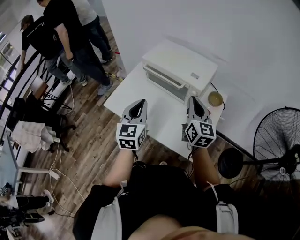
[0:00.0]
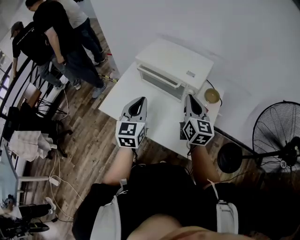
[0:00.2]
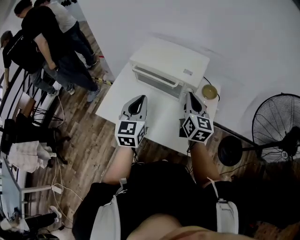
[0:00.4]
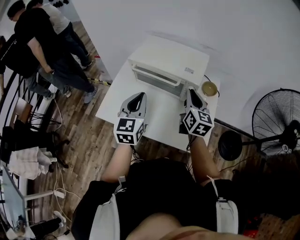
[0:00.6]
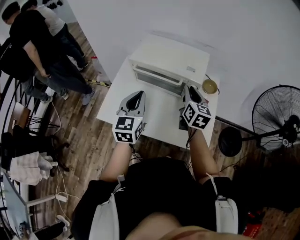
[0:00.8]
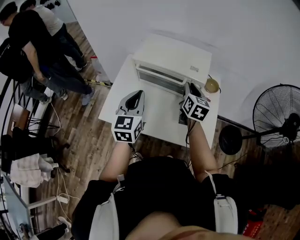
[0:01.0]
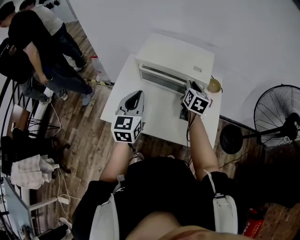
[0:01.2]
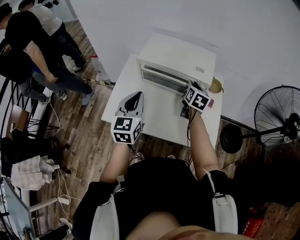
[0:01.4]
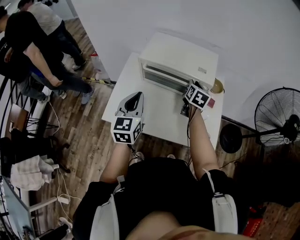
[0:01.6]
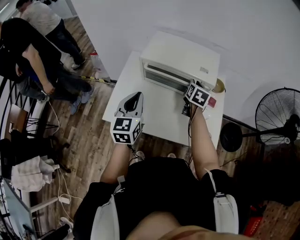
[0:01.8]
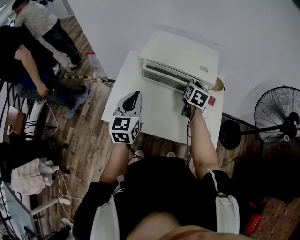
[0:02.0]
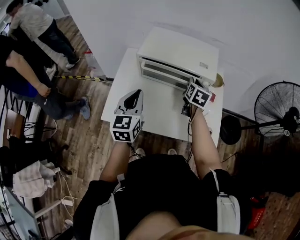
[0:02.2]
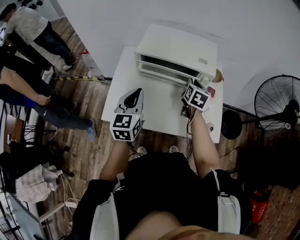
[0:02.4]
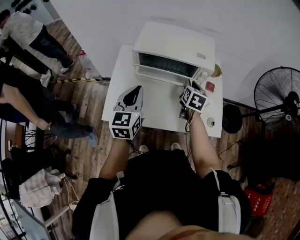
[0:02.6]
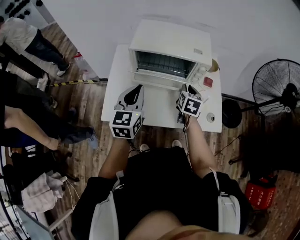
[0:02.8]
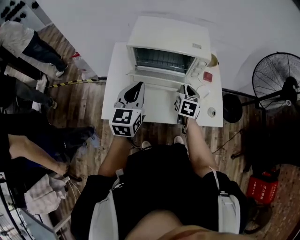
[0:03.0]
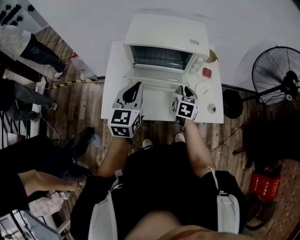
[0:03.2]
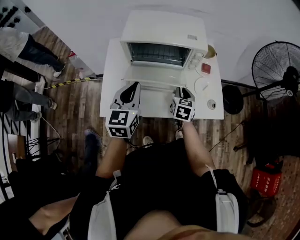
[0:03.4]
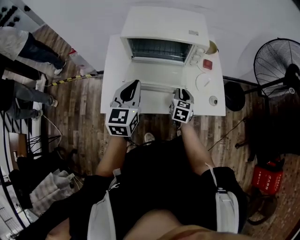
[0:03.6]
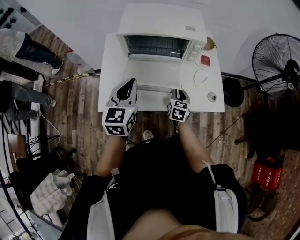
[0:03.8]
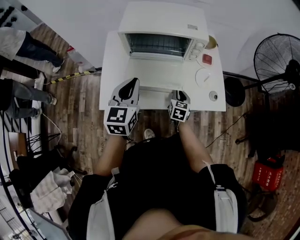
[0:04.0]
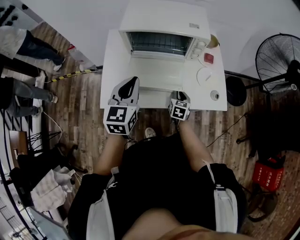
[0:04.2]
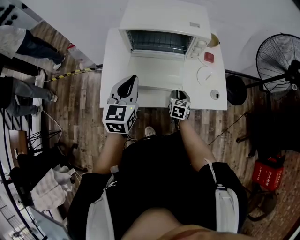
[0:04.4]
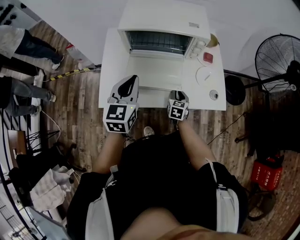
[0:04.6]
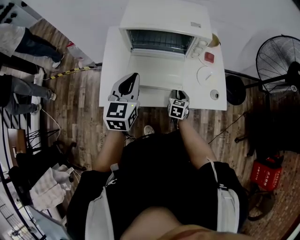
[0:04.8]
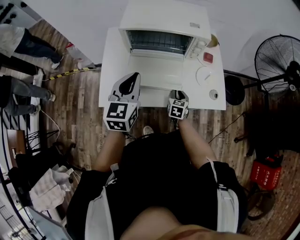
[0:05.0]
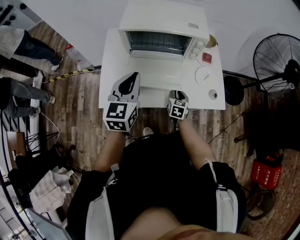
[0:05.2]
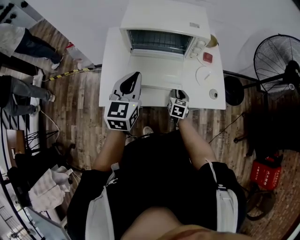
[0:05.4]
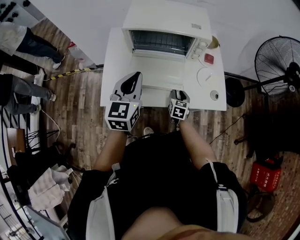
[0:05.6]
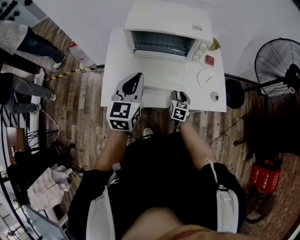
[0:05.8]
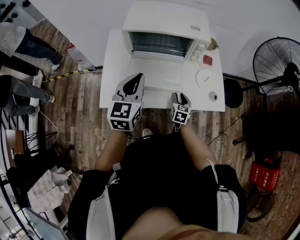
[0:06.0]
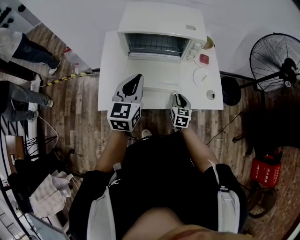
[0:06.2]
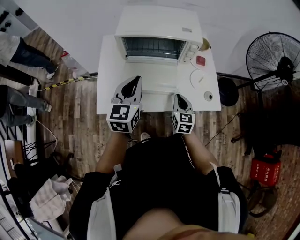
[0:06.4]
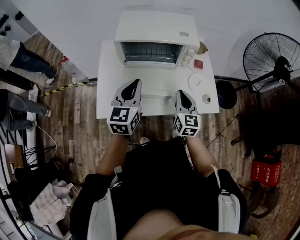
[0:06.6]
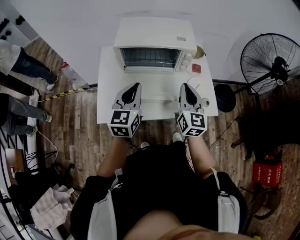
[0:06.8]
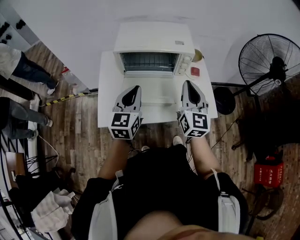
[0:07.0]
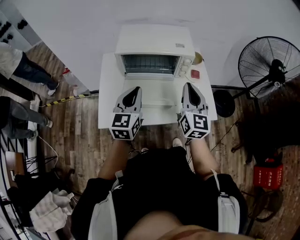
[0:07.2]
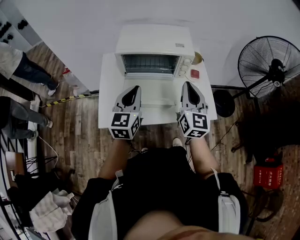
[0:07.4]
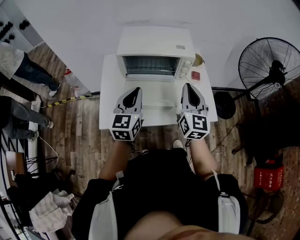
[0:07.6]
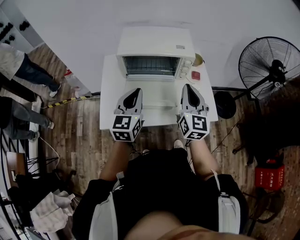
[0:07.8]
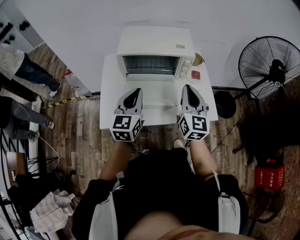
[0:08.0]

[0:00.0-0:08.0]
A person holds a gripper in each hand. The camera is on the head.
0:00.0 to 0:01.6: The left gripper travels to the left and forward by roughly 15 cm. Meanwhile the right gripper moves forward and downward, approximately 20 cm, turns by approximately 40 degrees, and opens its fingers.
0:01.6 to 0:03.2: The right gripper shifts roughly 15 cm backward and downward.
0:03.2 to 0:04.8: The right gripper shifts roughly 15 cm downward.
0:04.8 to 0:06.4: The right gripper goes about 10 cm upward.
0:06.4 to 0:08.0: The right gripper travels upward by some 25 cm, and turns by roughly 20 degrees.

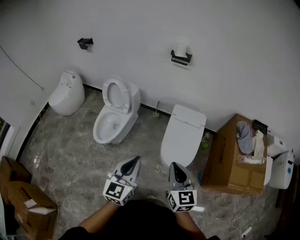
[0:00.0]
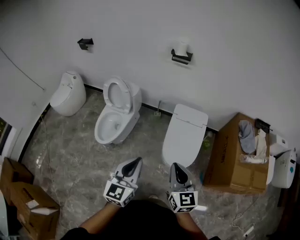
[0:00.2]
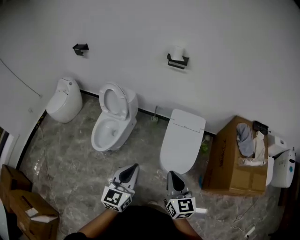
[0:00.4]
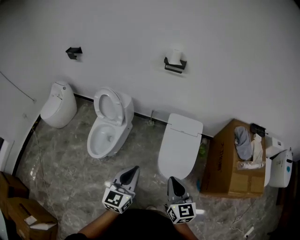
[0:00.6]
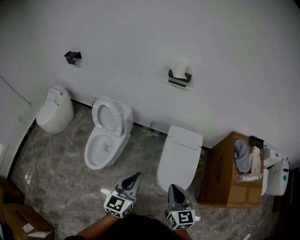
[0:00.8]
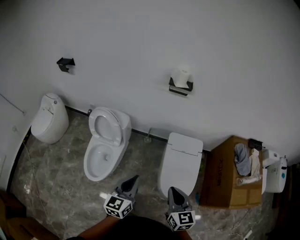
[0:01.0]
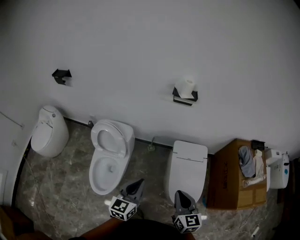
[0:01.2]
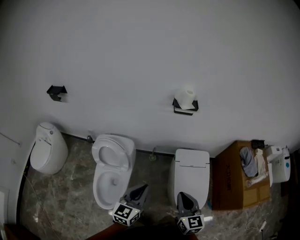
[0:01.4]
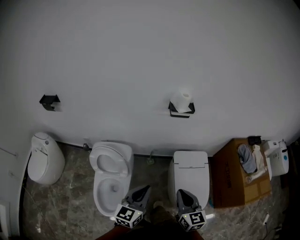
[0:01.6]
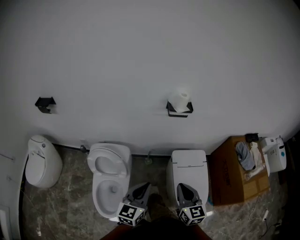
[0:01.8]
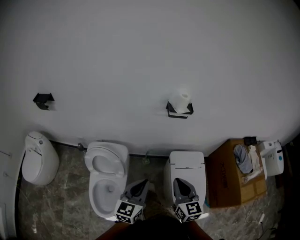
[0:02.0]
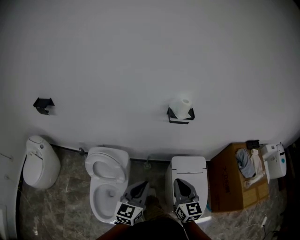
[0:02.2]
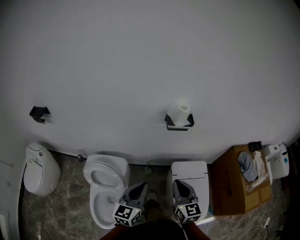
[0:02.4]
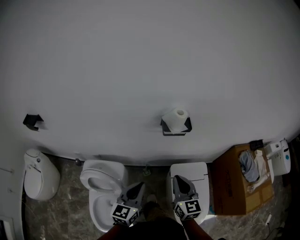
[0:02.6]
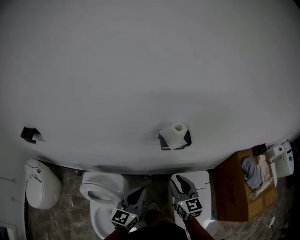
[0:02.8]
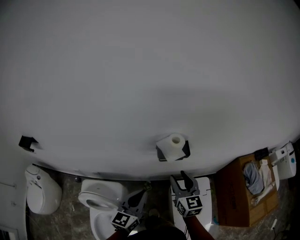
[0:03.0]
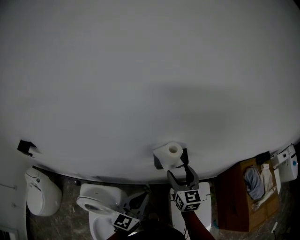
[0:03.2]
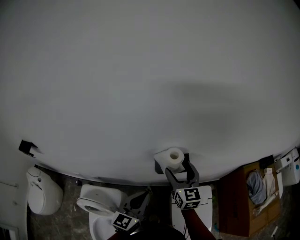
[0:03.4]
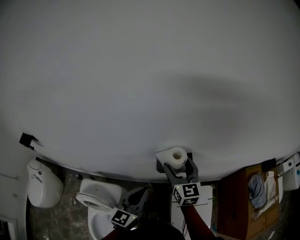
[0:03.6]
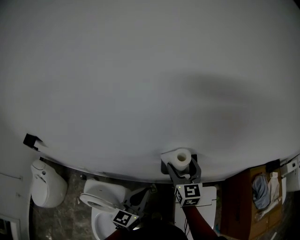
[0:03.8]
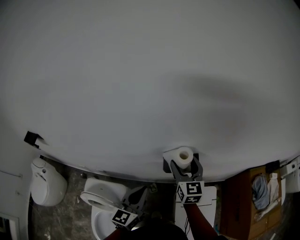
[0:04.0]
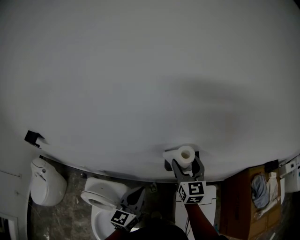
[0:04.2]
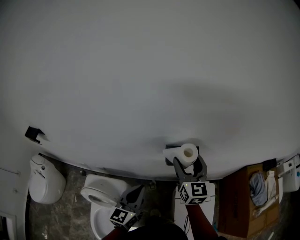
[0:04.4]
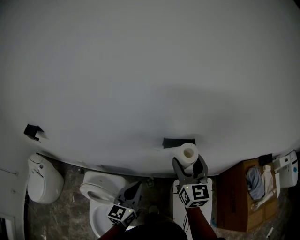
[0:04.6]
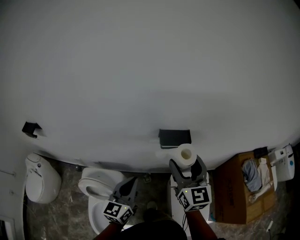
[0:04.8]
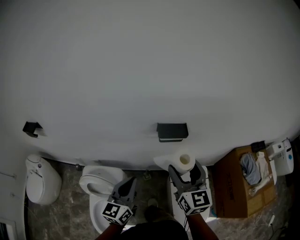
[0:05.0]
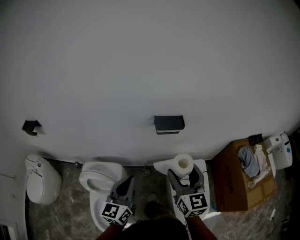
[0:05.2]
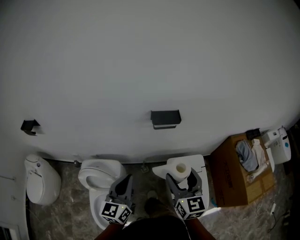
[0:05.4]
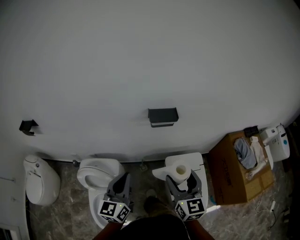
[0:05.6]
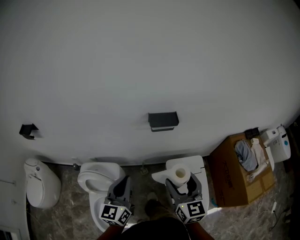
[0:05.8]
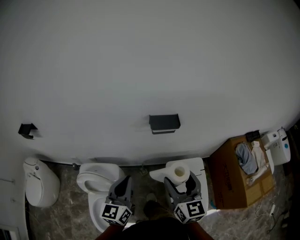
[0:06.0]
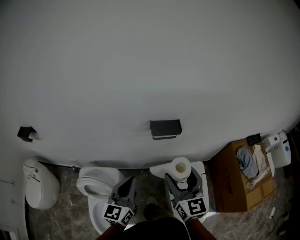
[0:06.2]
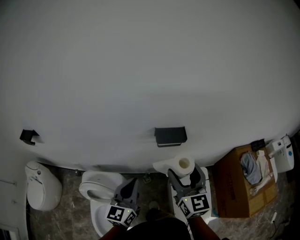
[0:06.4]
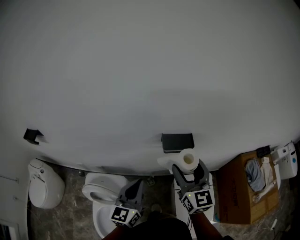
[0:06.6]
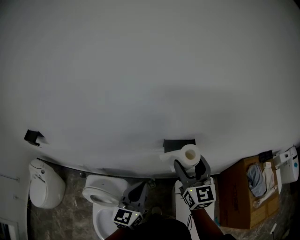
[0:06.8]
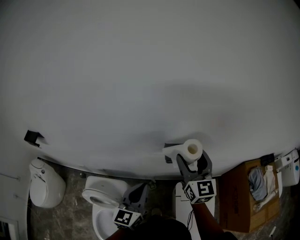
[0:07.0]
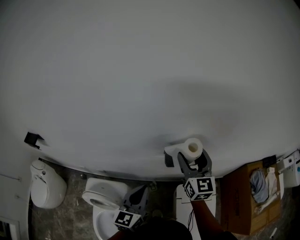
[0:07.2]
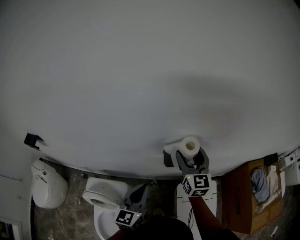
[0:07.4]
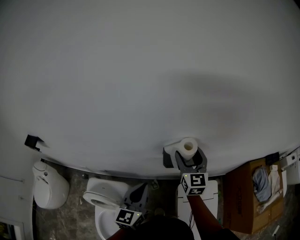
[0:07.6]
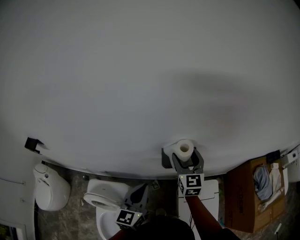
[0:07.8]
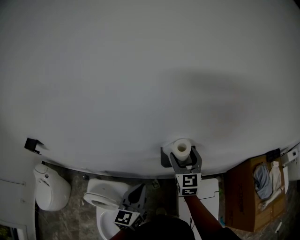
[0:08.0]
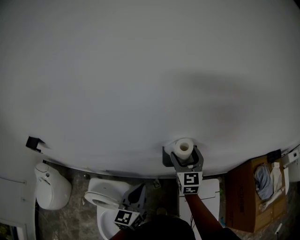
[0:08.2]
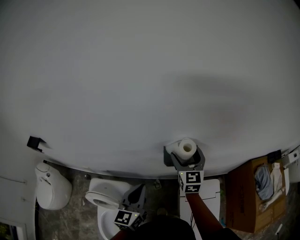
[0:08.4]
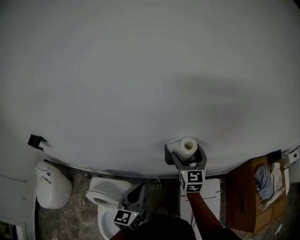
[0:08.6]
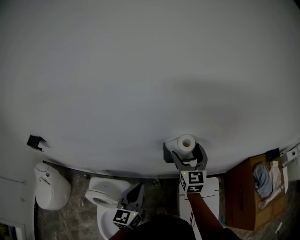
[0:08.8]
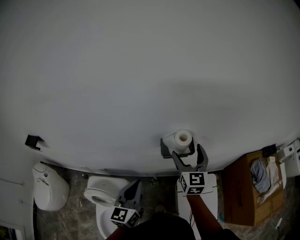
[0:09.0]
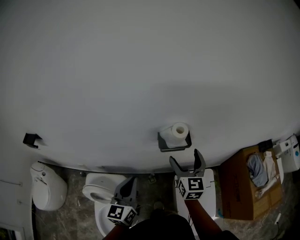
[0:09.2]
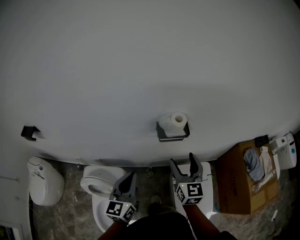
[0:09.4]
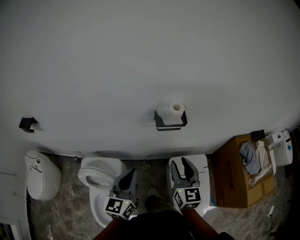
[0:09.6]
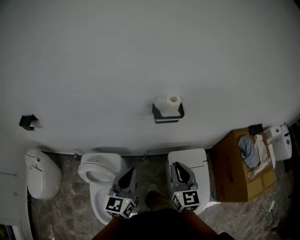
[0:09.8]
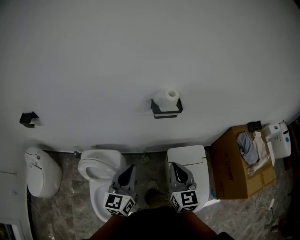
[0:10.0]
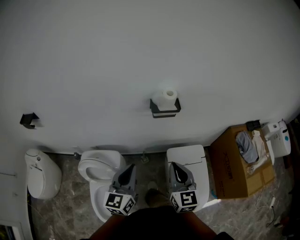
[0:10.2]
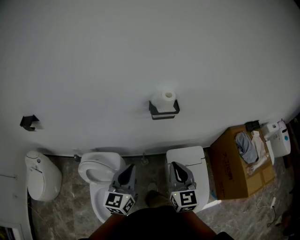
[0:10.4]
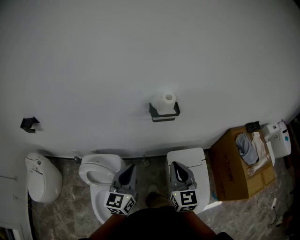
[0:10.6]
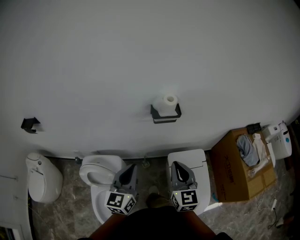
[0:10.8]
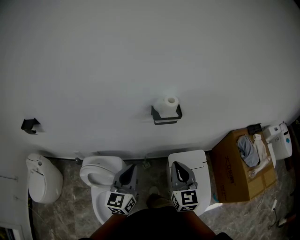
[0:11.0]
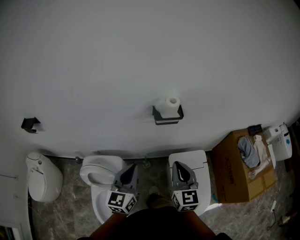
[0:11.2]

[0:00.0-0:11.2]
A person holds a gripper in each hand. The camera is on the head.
0:00.0 to 0:01.6: Both grippers are carried forward and to the left, some 40 cm. The left gripper changes its angle by about 30 degrees.
0:01.6 to 0:03.2: The grippers both shift forward by about 40 cm. The right gripper opens.
0:03.2 to 0:04.8: The left gripper goes about 10 cm backward and to the left, while the right gripper heads upward and backward, covering about 15 cm.
0:04.8 to 0:06.4: The right gripper moves some 20 cm backward and comes back; the left gripper travels backward and back again, about 10 cm each way.
0:06.4 to 0:08.0: The left gripper moves forward, roughly 10 cm, while the right gripper shifts approximately 25 cm forward and downward.
0:08.0 to 0:09.6: The left gripper heads backward, covering approximately 15 cm. The right gripper heads backward, covering approximately 25 cm, and closes up.
0:09.6 to 0:11.2: The right gripper moves backward, roughly 5 cm, and closes.

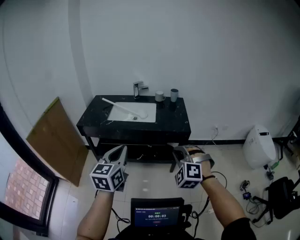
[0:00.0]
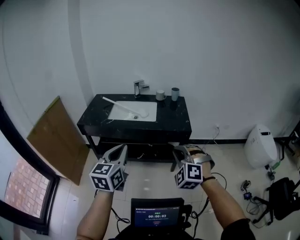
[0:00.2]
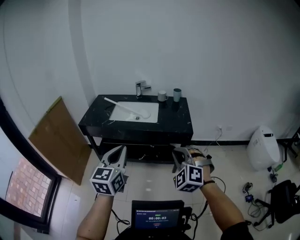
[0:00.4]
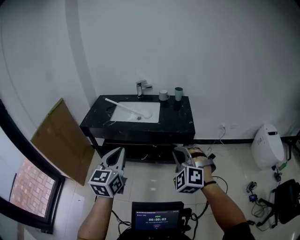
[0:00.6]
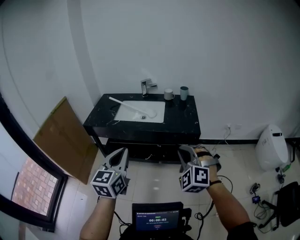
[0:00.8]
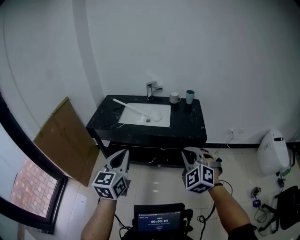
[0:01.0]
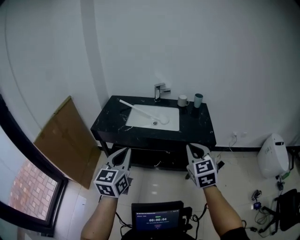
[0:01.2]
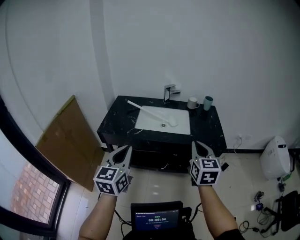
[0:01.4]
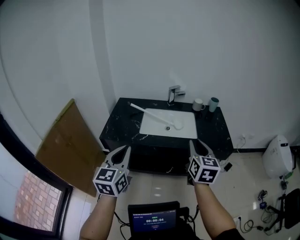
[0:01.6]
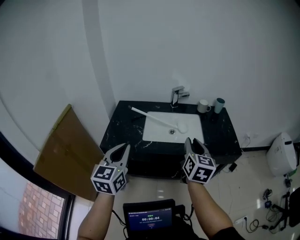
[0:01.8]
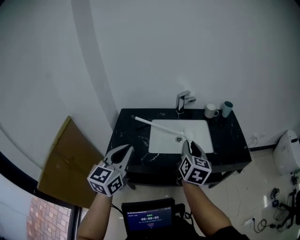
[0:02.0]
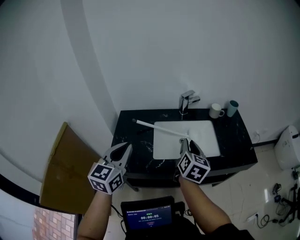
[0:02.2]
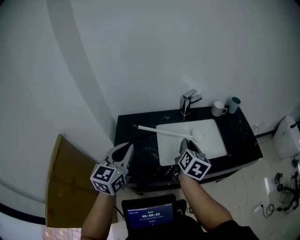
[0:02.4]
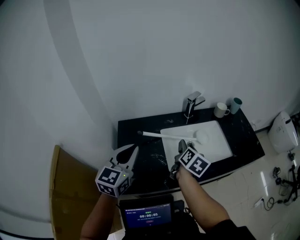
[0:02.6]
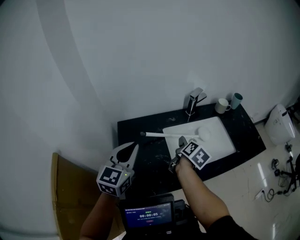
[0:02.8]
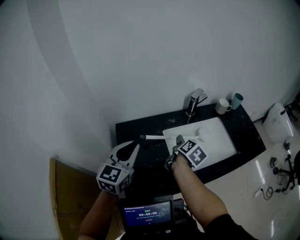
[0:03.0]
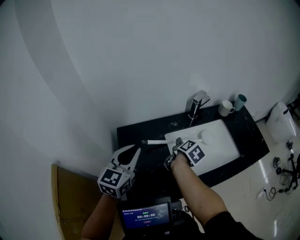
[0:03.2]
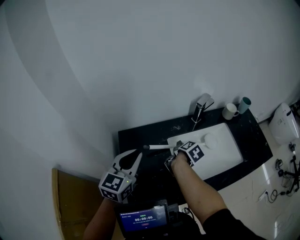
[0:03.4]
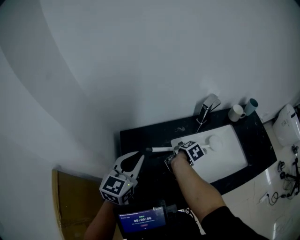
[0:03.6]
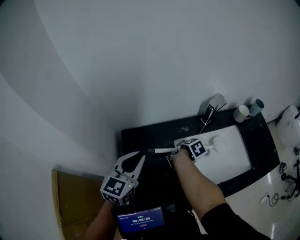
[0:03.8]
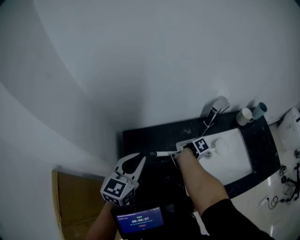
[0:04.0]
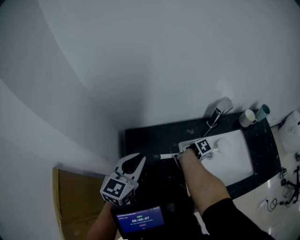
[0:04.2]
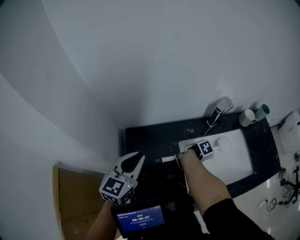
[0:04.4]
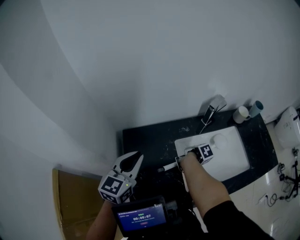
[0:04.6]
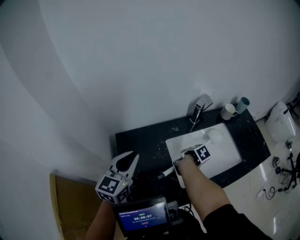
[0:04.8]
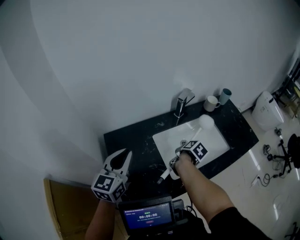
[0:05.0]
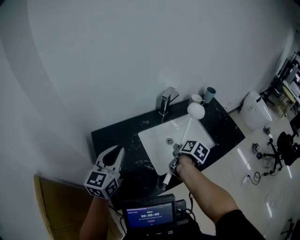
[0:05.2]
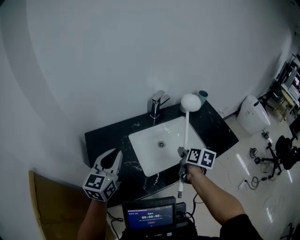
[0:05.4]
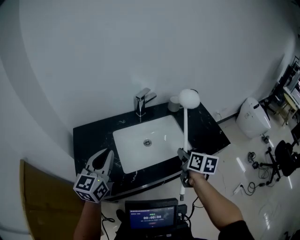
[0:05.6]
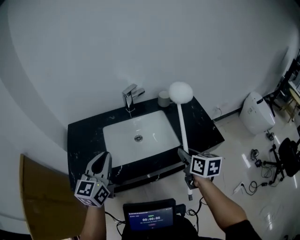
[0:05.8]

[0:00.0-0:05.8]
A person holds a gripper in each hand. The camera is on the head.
0:00.0 to 0:01.4: The right gripper is displaced forward and to the left by approximately 30 cm, and rotates around the line of its fingers by approximately 70 degrees, clockwise from behind. Meanwhile the left gripper shifts approximately 30 cm to the left and forward.
0:01.4 to 0:02.8: The two grippers travel together, some 60 cm. The left gripper changes its angle by about 30 degrees; the right gripper twists approximately 60 degrees clockwise, seen from behind, and opens up.
0:02.8 to 0:04.4: The left gripper is displaced forward, to the left and downward by roughly 15 cm. The right gripper is displaced downward and forward by some 25 cm, angles its fingers downward, by about 40 degrees, and closes up.
0:04.4 to 0:05.8: Both grippers are carried to the right and backward, about 50 cm. The right gripper goes about 25 cm upward, and tilts its fingers some 40 degrees upward.
